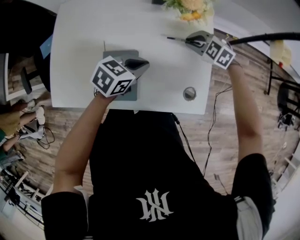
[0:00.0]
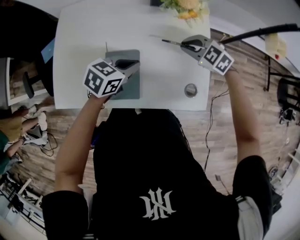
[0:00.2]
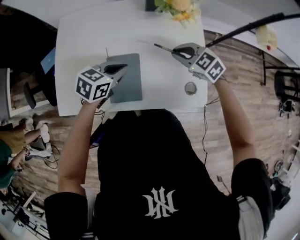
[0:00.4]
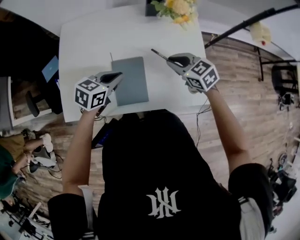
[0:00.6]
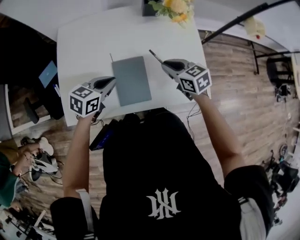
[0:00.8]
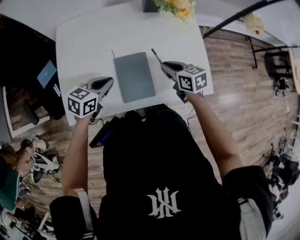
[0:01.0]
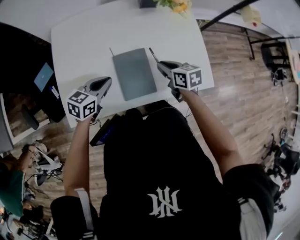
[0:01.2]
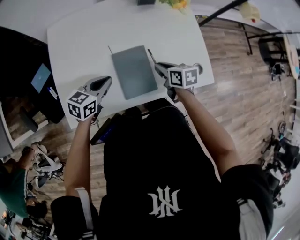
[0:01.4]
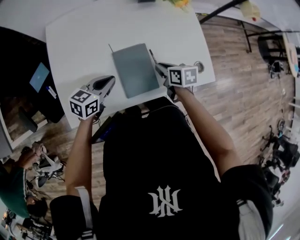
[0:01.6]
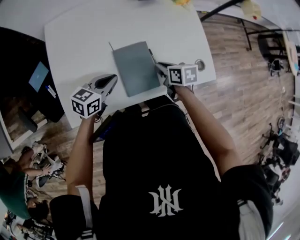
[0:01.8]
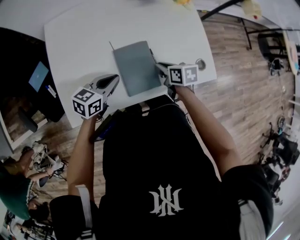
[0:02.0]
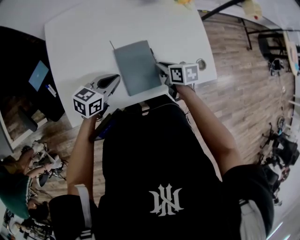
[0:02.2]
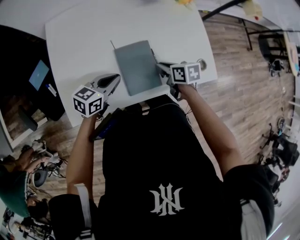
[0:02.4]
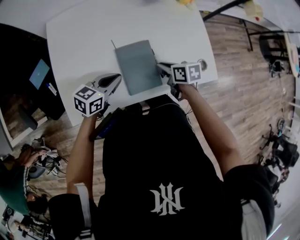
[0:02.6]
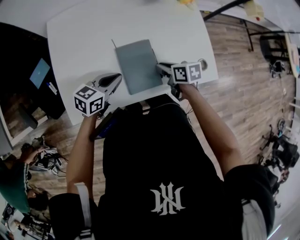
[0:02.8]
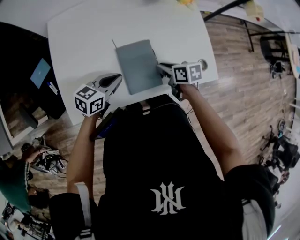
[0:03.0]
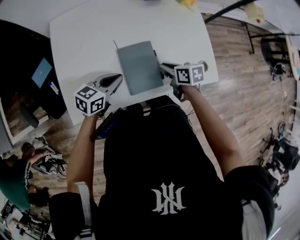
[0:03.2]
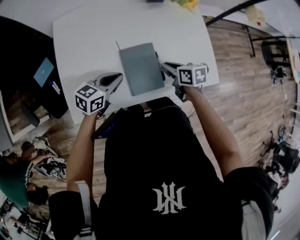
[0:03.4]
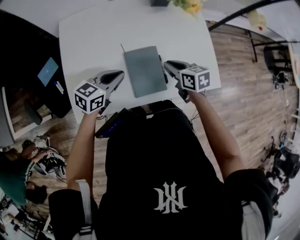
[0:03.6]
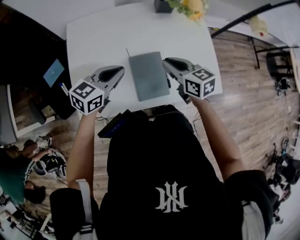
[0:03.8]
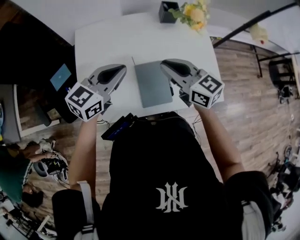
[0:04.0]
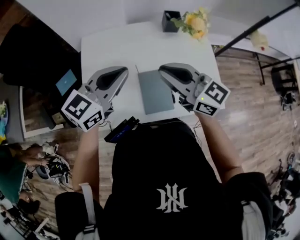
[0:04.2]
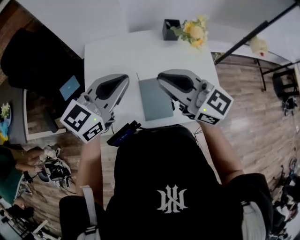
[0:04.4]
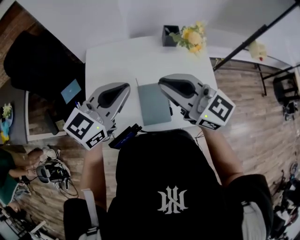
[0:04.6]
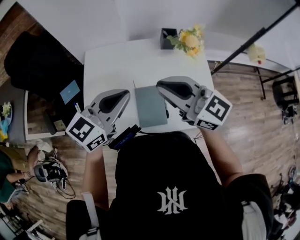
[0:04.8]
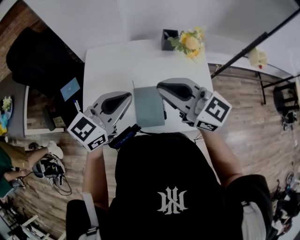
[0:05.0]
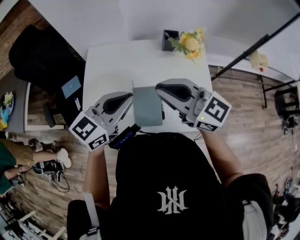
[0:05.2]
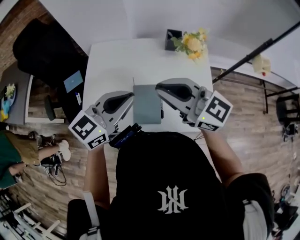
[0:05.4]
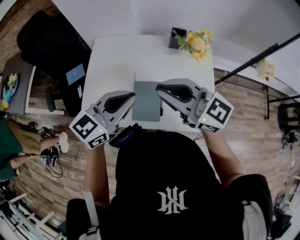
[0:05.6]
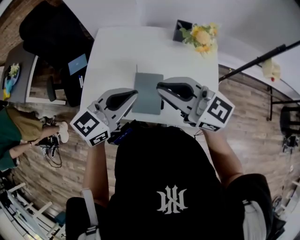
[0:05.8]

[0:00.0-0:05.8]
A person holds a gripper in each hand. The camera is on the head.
0.0 to 1.4 s: The left gripper moves some 20 cm. Meanwhile the right gripper goes upward and returns, approximately 5 cm each way, and twists some 80 degrees clockwise, seen from behind.
1.4 to 2.8 s: The grippers stay close to where they were, moving slightly.
2.8 to 4.4 s: Both grippers move upward, some 30 cm. The right gripper points its fingers approximately 50 degrees further upward. Meanwhile the left gripper rotates some 30 degrees.
4.4 to 5.8 s: The left gripper moves to the right and backward, approximately 10 cm. The right gripper heads to the right, covering some 5 cm.

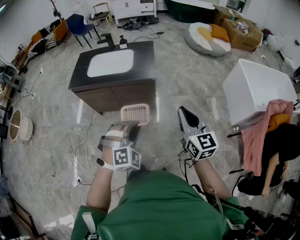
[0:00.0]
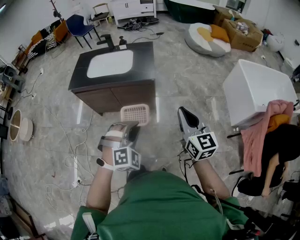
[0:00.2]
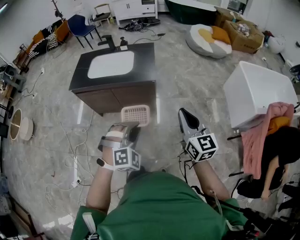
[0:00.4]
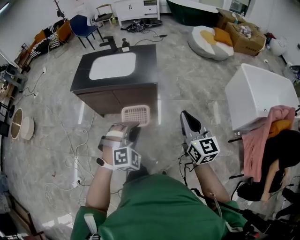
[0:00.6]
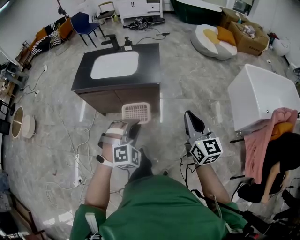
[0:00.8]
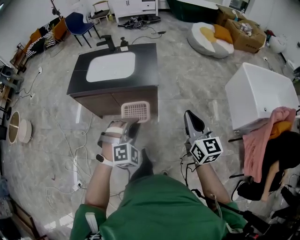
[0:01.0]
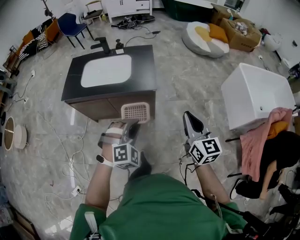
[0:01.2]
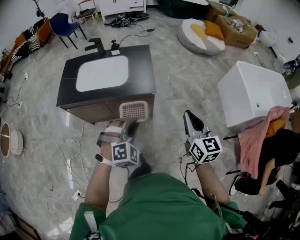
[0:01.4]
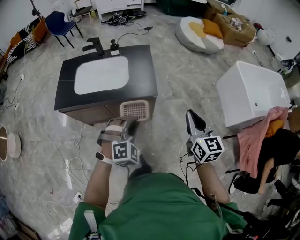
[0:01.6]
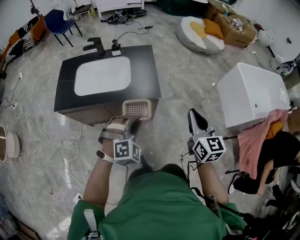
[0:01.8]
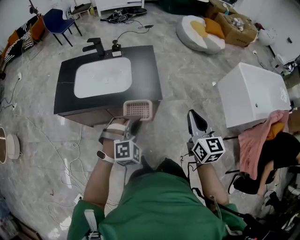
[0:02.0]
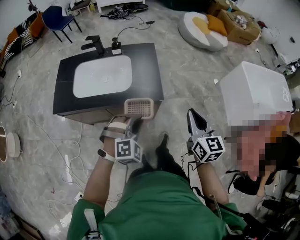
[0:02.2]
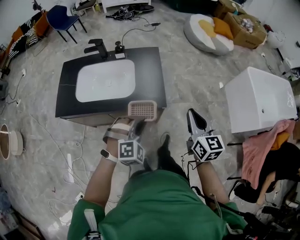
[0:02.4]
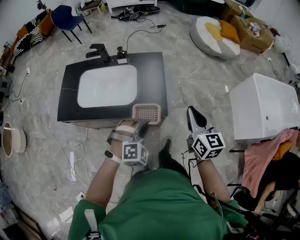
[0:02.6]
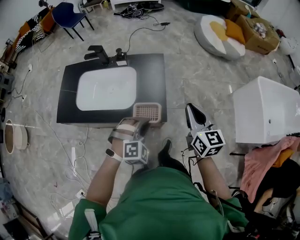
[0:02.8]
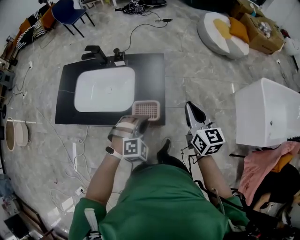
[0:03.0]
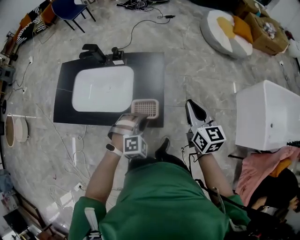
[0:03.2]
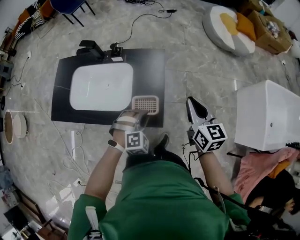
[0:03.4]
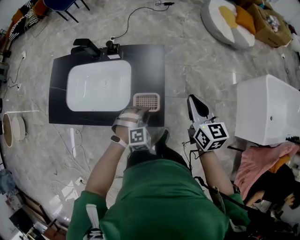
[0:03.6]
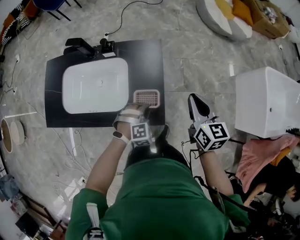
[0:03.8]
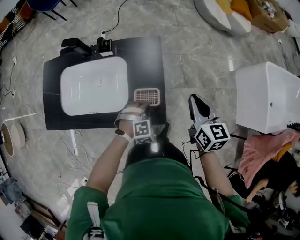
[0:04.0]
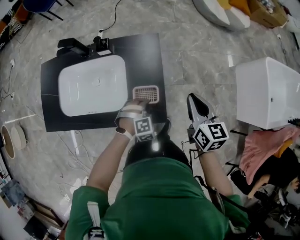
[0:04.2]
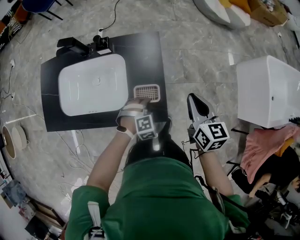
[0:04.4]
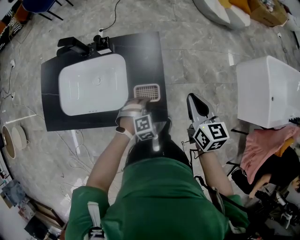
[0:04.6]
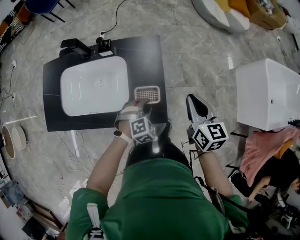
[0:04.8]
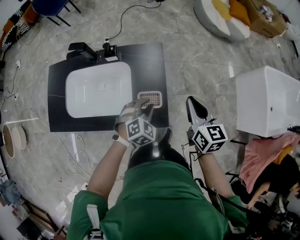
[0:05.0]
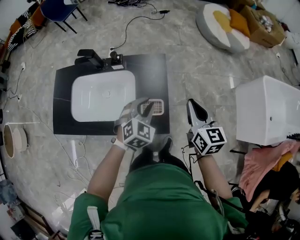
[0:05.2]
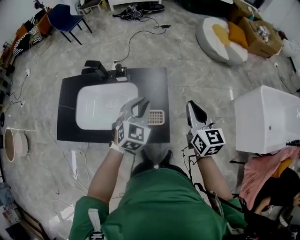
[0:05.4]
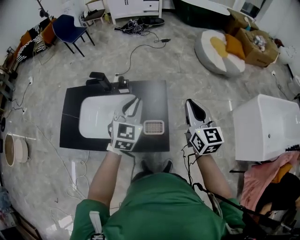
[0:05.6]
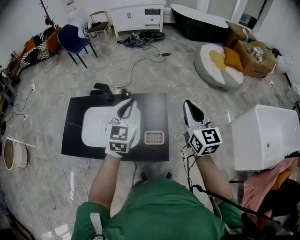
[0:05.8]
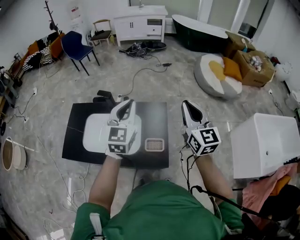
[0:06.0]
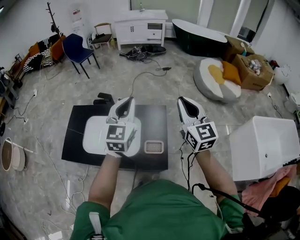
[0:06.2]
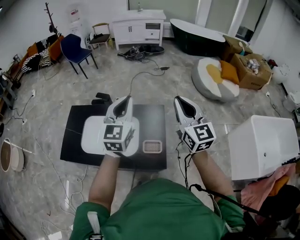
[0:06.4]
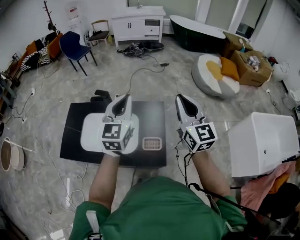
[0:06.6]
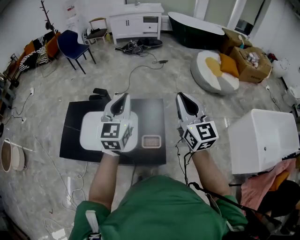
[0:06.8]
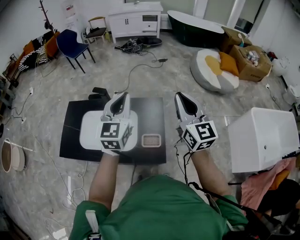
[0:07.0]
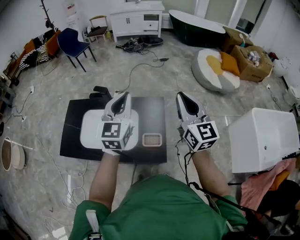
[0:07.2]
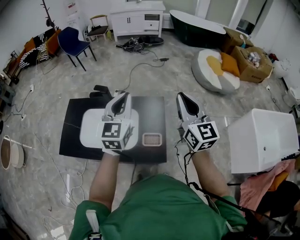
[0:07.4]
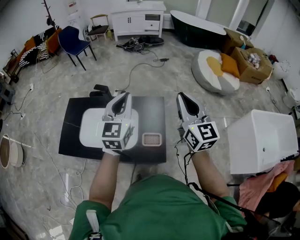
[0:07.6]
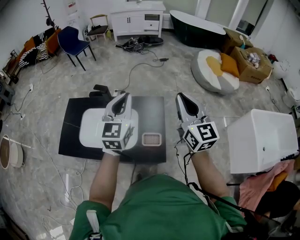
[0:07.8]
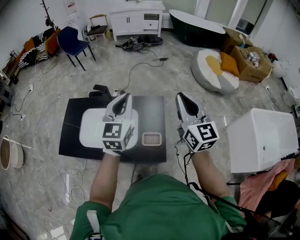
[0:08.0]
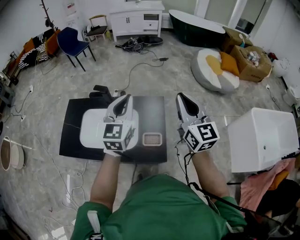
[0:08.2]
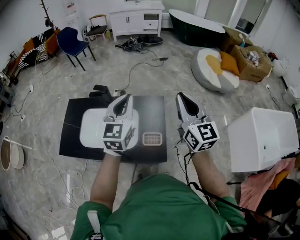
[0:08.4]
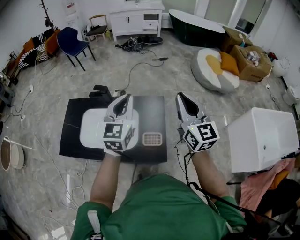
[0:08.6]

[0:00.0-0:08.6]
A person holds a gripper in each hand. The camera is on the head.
0.0 to 1.4 s: The two grippers go about 20 cm forward.
1.4 to 2.8 s: Both grippers move forward, some 30 cm.
2.8 to 4.4 s: The left gripper is displaced downward and forward by about 25 cm; the right gripper heads forward and downward, covering approximately 20 cm.
4.4 to 5.8 s: The left gripper shifts some 40 cm upward, and angles its fingers upward, by approximately 50 degrees, while the right gripper heads upward, covering about 25 cm, and turns by about 30 degrees.
5.8 to 7.2 s: The two grippers go some 5 cm upward.
7.2 to 8.6 s: The grippers move only a little.

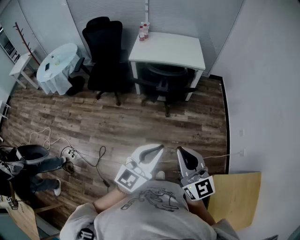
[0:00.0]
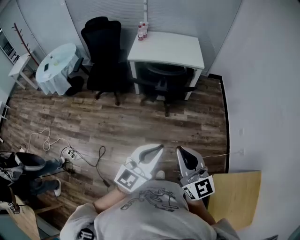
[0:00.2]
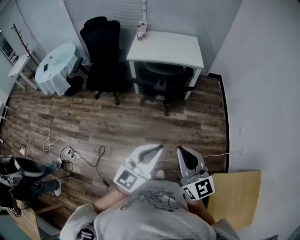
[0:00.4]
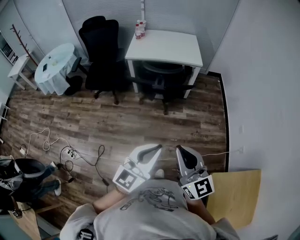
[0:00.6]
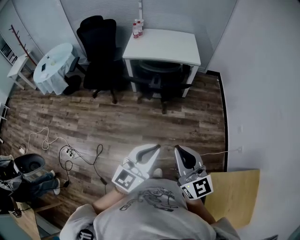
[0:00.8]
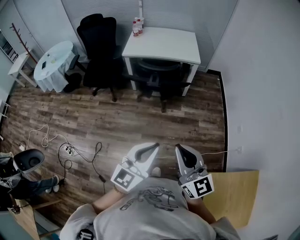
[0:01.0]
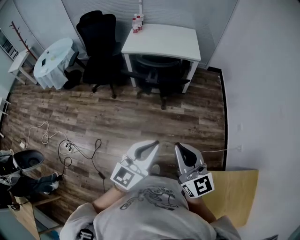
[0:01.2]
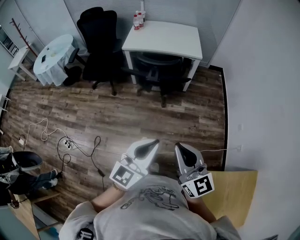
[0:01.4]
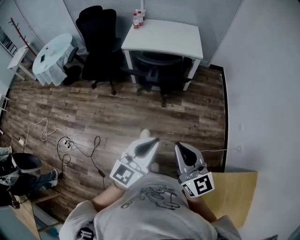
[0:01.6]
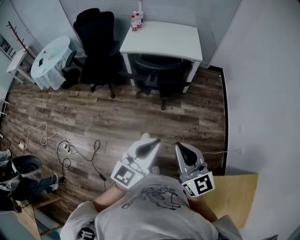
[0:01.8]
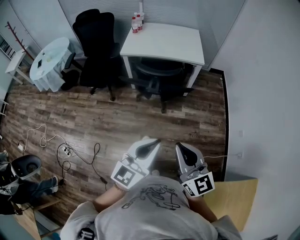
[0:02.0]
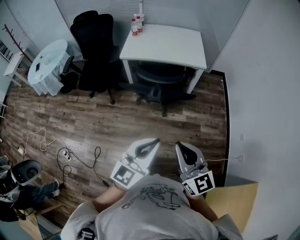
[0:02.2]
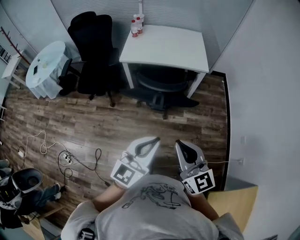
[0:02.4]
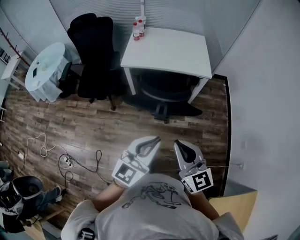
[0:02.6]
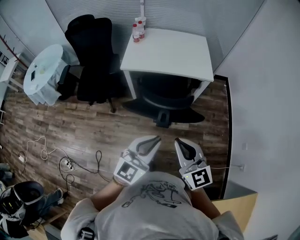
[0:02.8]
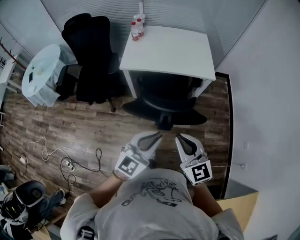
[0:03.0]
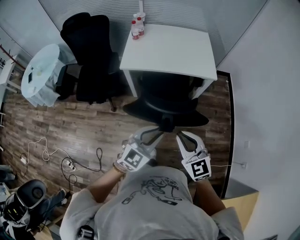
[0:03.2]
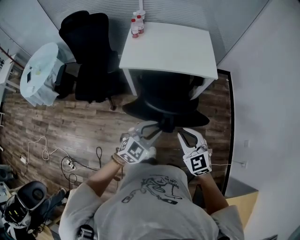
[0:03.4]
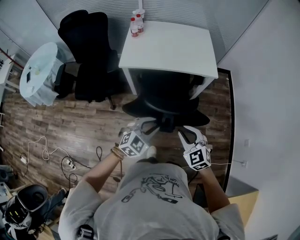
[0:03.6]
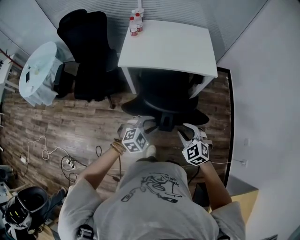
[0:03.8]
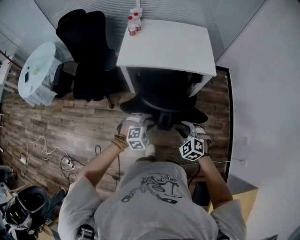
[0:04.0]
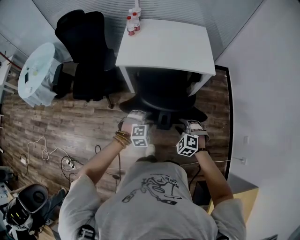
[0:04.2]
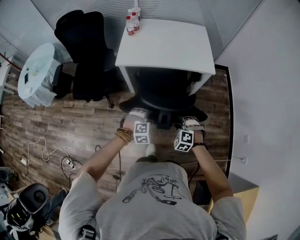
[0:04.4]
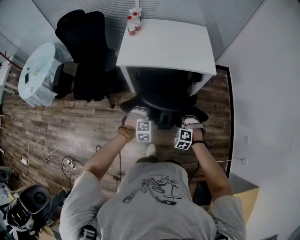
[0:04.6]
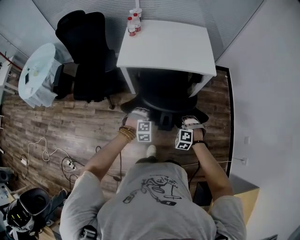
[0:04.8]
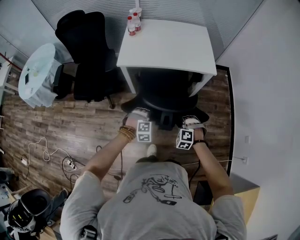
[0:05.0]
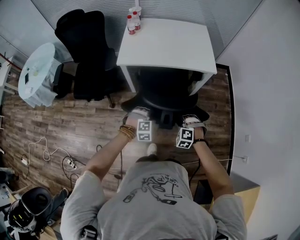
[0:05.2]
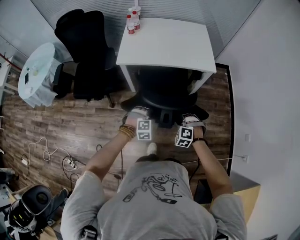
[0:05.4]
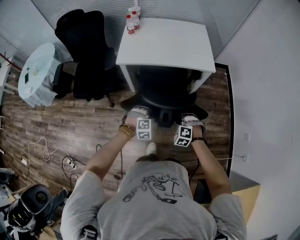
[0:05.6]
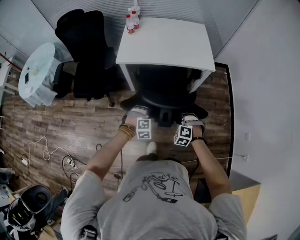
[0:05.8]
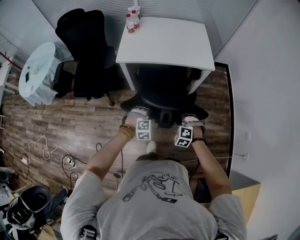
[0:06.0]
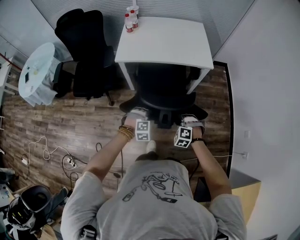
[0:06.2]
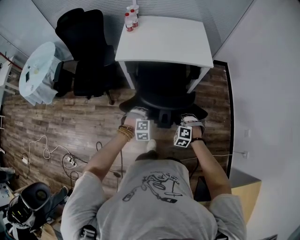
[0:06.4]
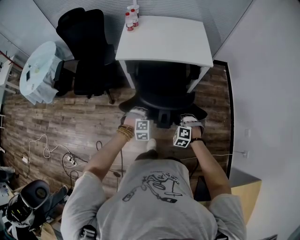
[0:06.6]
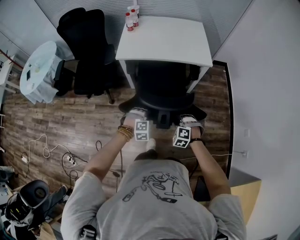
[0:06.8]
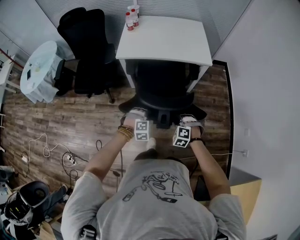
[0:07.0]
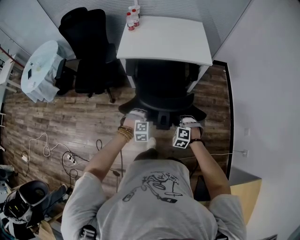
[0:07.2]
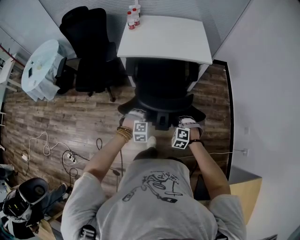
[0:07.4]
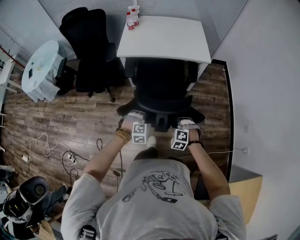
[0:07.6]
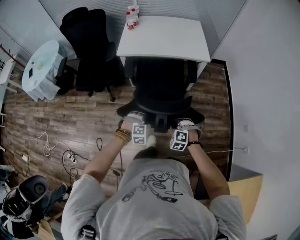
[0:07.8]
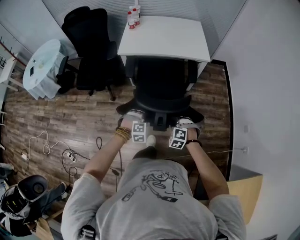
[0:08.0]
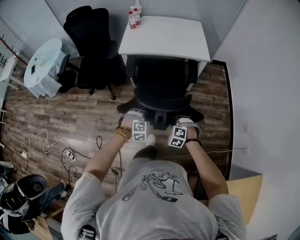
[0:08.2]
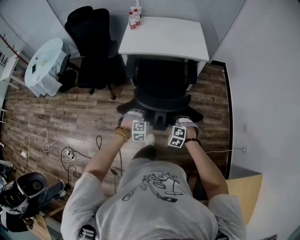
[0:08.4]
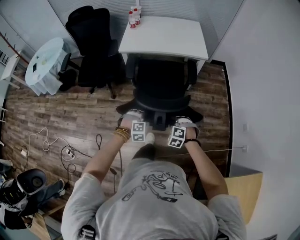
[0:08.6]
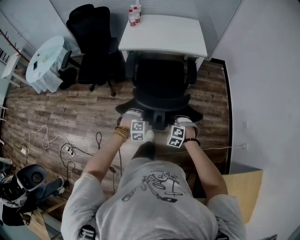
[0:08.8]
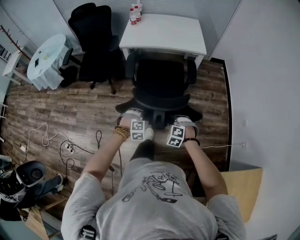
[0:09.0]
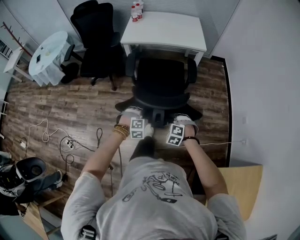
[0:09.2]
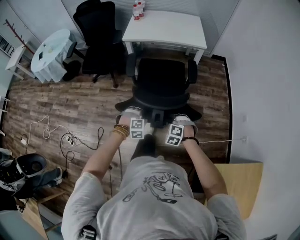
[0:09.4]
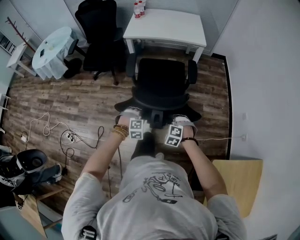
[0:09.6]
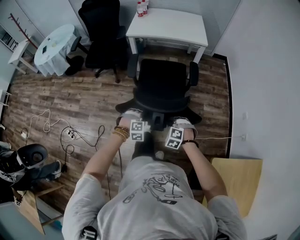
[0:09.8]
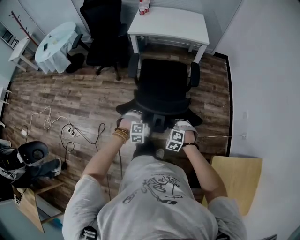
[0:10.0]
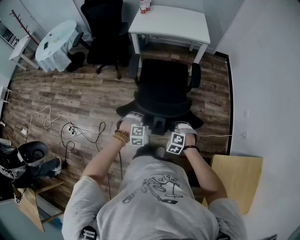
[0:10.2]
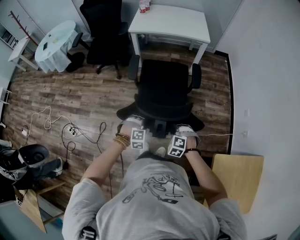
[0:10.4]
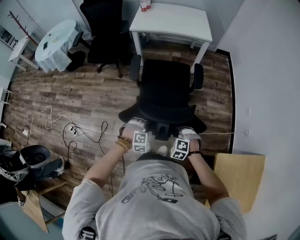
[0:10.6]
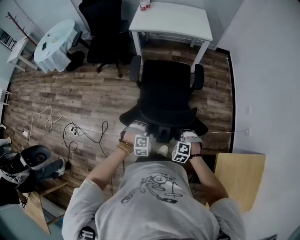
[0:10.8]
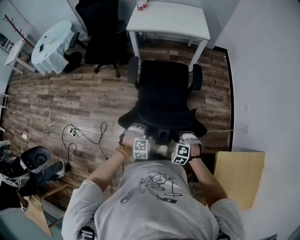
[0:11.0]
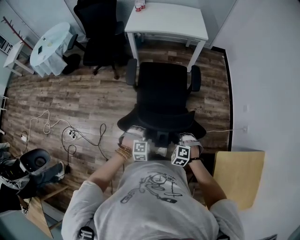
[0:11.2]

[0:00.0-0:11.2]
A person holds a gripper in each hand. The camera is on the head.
0.0 to 1.6 s: The right gripper shifts some 10 cm to the right, while the left gripper heads to the right and forward, covering about 10 cm.
1.6 to 3.2 s: The pair of grippers is taken forward, about 40 cm. The right gripper turns by approximately 20 degrees, while the left gripper rotates some 20 degrees.
3.2 to 4.8 s: Both grippers move downward, some 25 cm. The right gripper tilts its fingers approximately 40 degrees downward, and opens up. The left gripper tilts its fingers roughly 40 degrees downward.
4.8 to 6.4 s: The grippers both shift backward by roughly 5 cm.
6.4 to 8.0 s: The two grippers go roughly 15 cm backward.
8.0 to 9.6 s: Both grippers move backward, roughly 25 cm.
9.6 to 11.2 s: The two grippers go roughly 15 cm backward.
